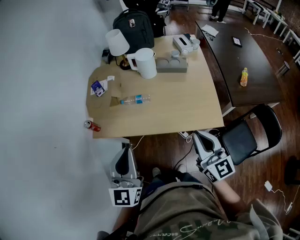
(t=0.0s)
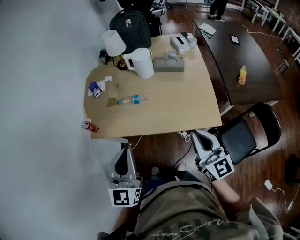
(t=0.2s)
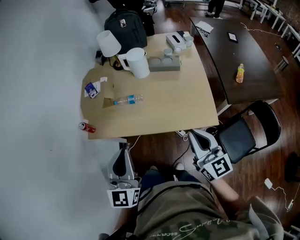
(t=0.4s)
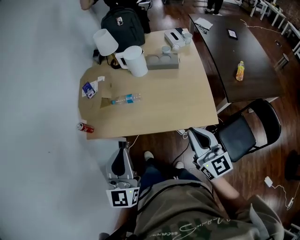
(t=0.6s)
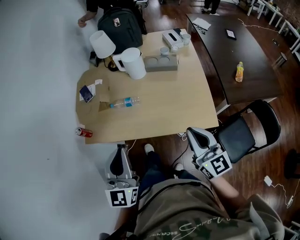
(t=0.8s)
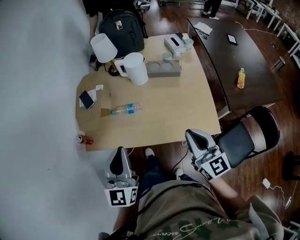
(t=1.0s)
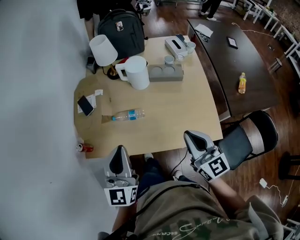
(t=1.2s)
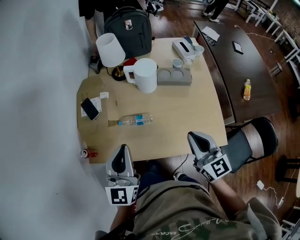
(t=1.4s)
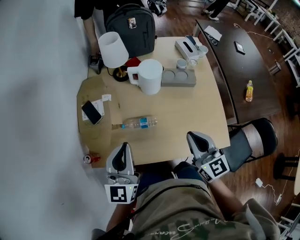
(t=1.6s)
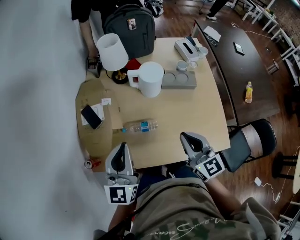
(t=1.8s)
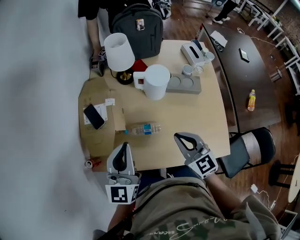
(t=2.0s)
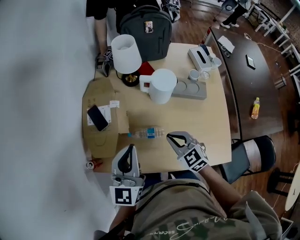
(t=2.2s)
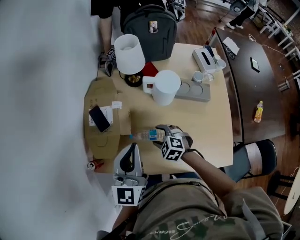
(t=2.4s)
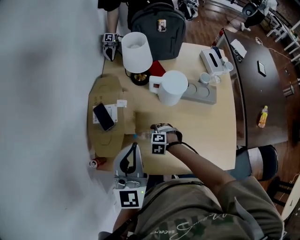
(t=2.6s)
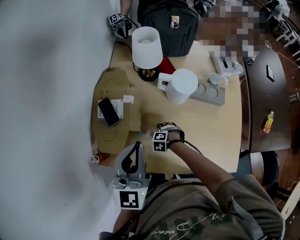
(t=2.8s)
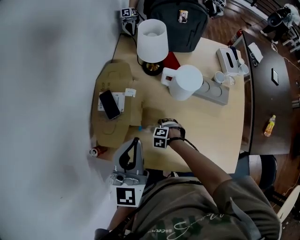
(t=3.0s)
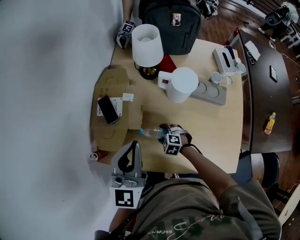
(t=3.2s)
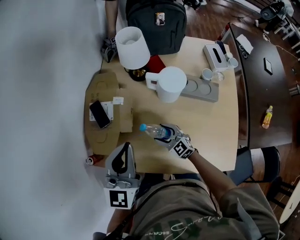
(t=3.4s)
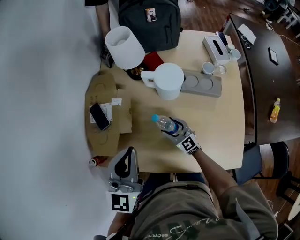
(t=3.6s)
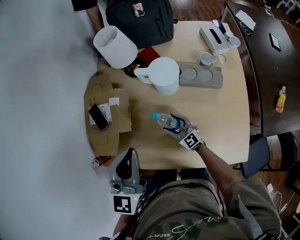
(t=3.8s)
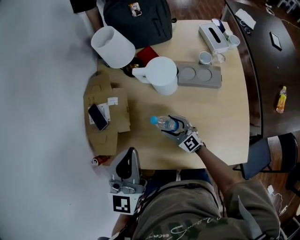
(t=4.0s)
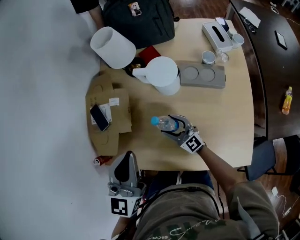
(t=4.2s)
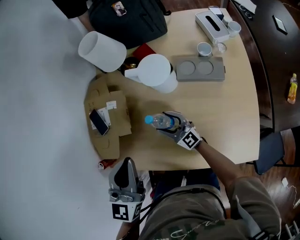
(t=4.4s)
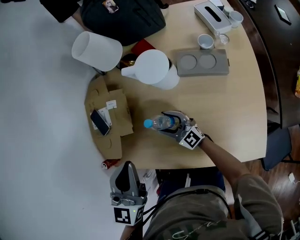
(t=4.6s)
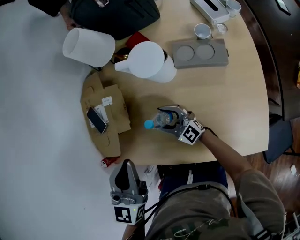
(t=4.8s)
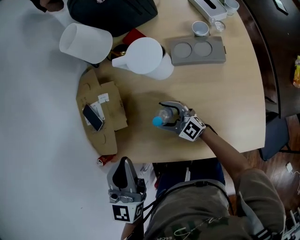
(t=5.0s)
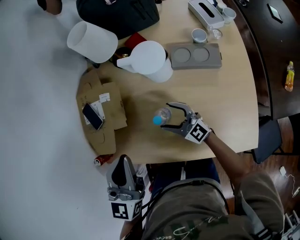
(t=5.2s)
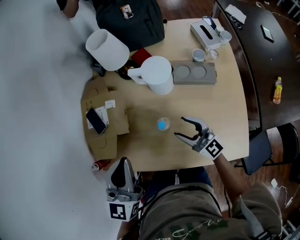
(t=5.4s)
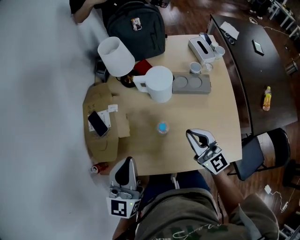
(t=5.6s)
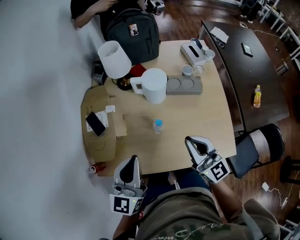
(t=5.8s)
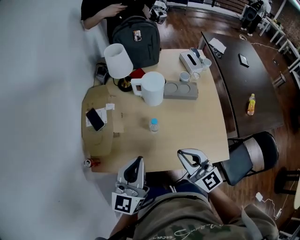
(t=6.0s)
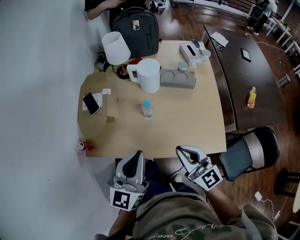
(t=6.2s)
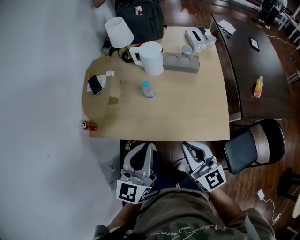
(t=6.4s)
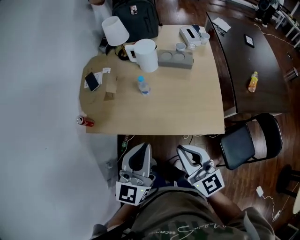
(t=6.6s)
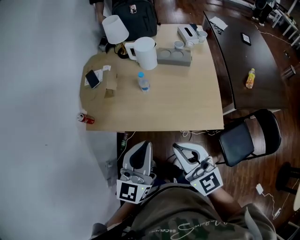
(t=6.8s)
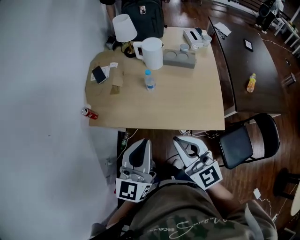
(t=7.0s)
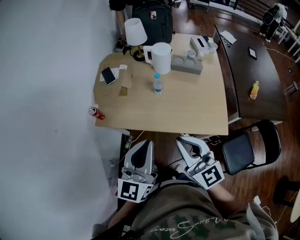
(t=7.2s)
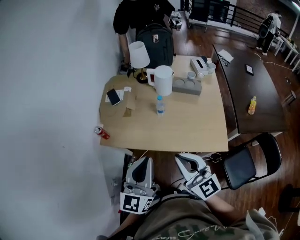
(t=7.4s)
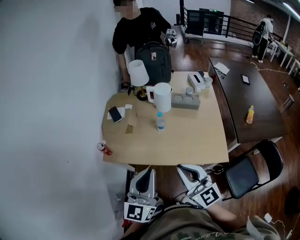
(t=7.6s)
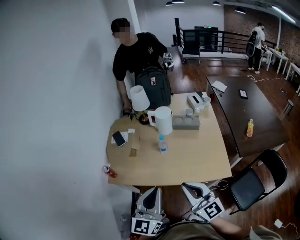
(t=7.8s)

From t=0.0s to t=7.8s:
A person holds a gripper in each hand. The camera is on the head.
From t=0.0s to t=1.6s: The grippers both shift forward by roughly 25 cm.
From t=1.6s to t=3.2s: The right gripper heads downward, covering roughly 35 cm, points its fingers roughly 50 degrees further downward, and opens its fingers, while the left gripper moves some 10 cm.
From t=3.2s to t=4.6s: The right gripper travels upward and to the right by roughly 10 cm, and angles its fingers upward, by approximately 60 degrees. Meanwhile the left gripper travels to the right by approximately 10 cm.
From t=4.6s to t=6.2s: The left gripper shifts some 15 cm backward, and changes its angle by about 20 degrees. Meanwhile the right gripper heads backward and upward, covering roughly 35 cm, and closes its fingers.
From t=6.2s to t=7.8s: The left gripper is displaced backward by about 20 cm. Meanwhile the right gripper is displaced backward and upward by about 20 cm.

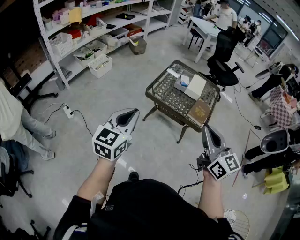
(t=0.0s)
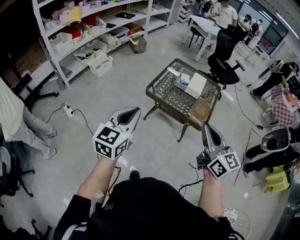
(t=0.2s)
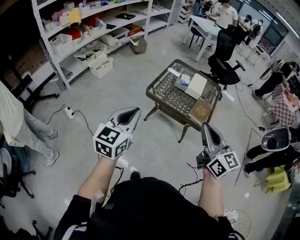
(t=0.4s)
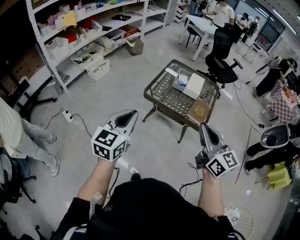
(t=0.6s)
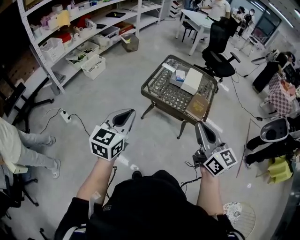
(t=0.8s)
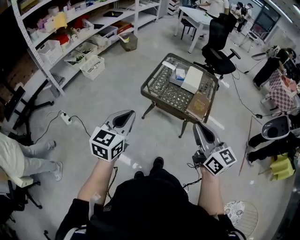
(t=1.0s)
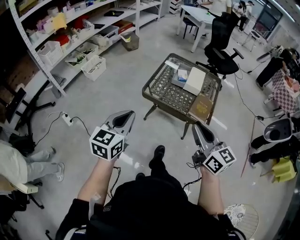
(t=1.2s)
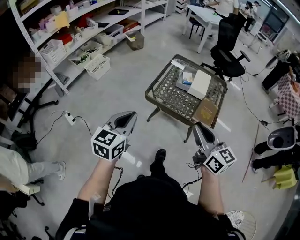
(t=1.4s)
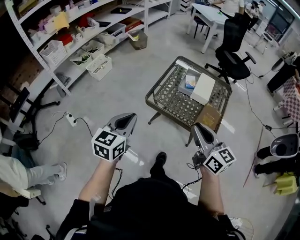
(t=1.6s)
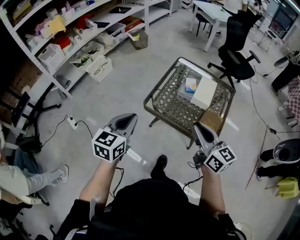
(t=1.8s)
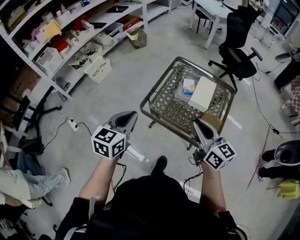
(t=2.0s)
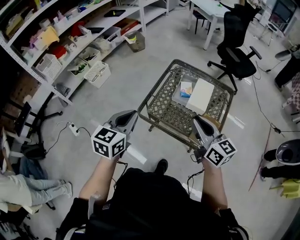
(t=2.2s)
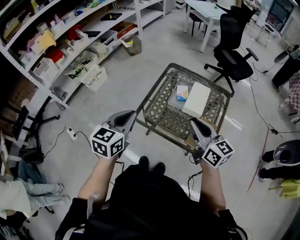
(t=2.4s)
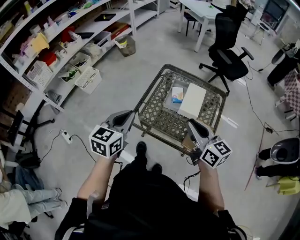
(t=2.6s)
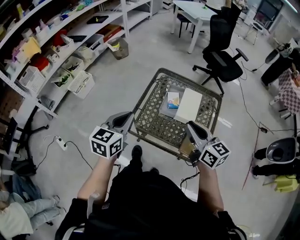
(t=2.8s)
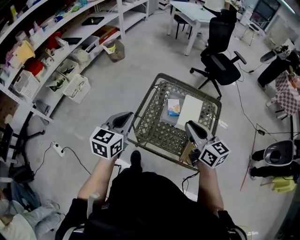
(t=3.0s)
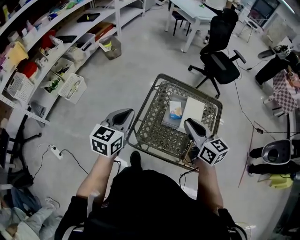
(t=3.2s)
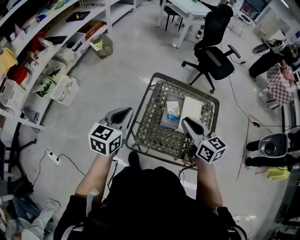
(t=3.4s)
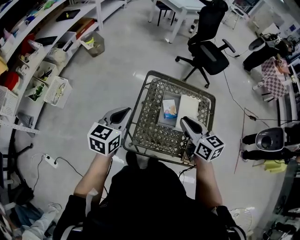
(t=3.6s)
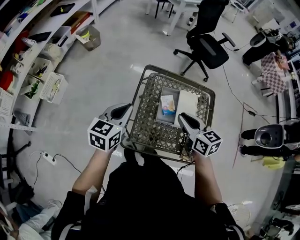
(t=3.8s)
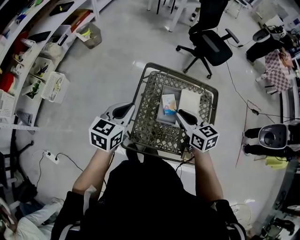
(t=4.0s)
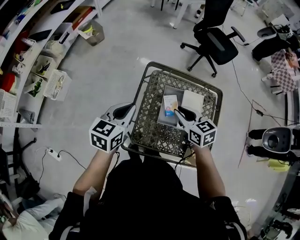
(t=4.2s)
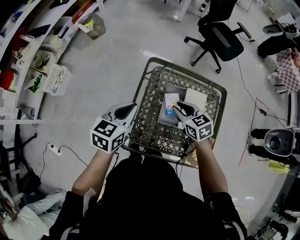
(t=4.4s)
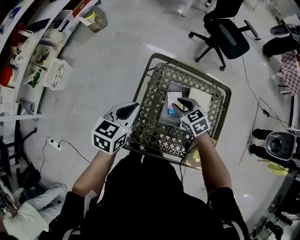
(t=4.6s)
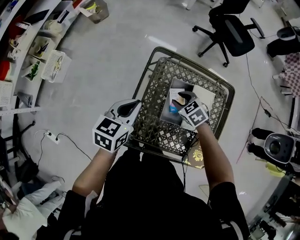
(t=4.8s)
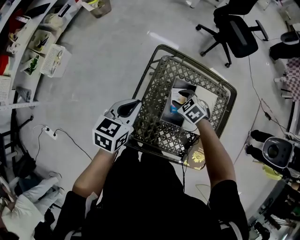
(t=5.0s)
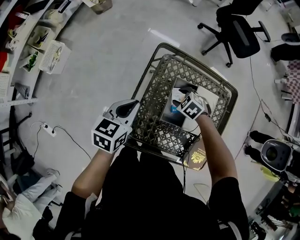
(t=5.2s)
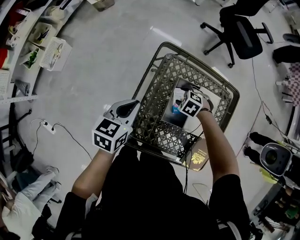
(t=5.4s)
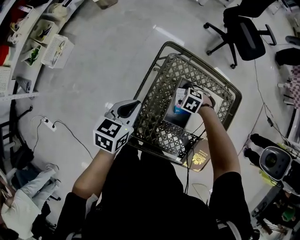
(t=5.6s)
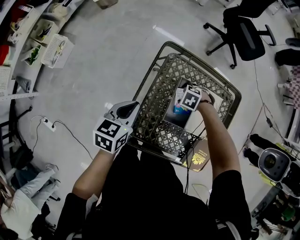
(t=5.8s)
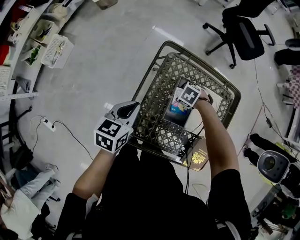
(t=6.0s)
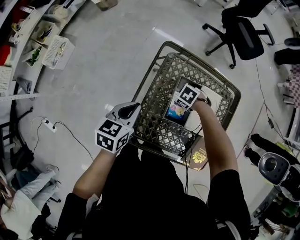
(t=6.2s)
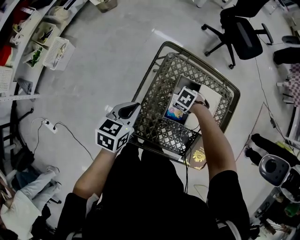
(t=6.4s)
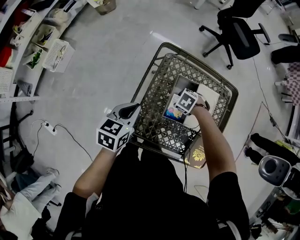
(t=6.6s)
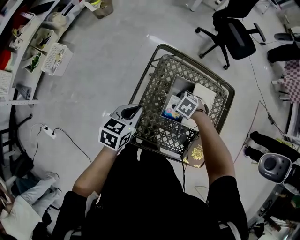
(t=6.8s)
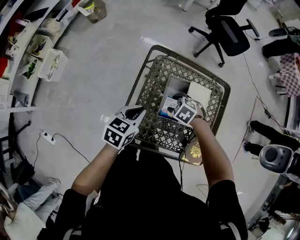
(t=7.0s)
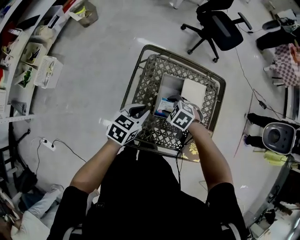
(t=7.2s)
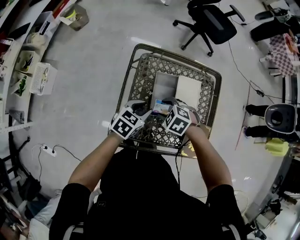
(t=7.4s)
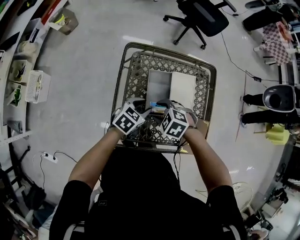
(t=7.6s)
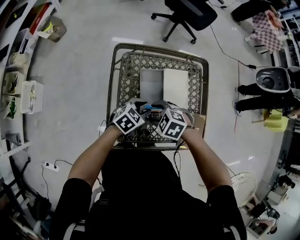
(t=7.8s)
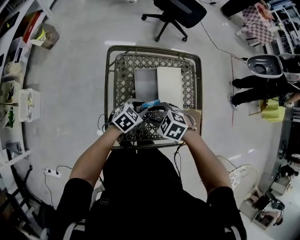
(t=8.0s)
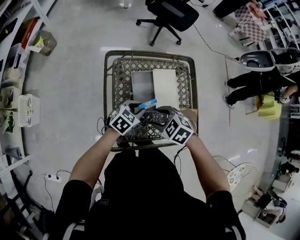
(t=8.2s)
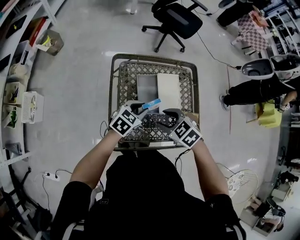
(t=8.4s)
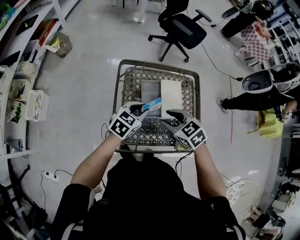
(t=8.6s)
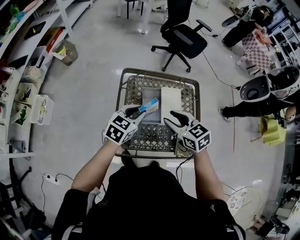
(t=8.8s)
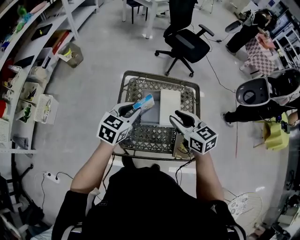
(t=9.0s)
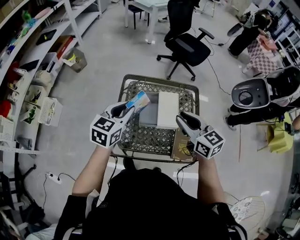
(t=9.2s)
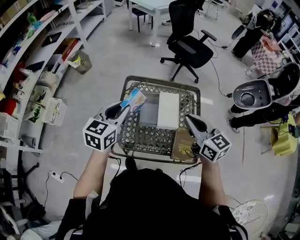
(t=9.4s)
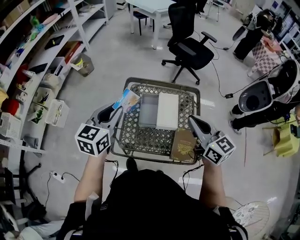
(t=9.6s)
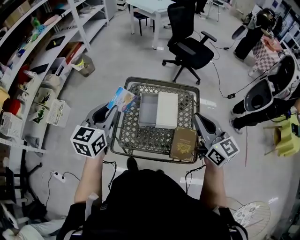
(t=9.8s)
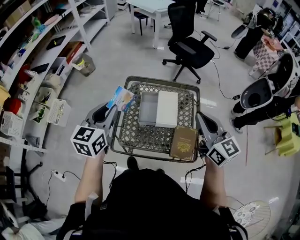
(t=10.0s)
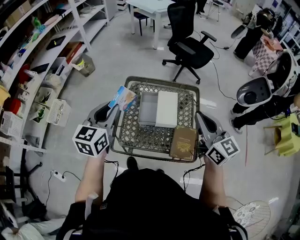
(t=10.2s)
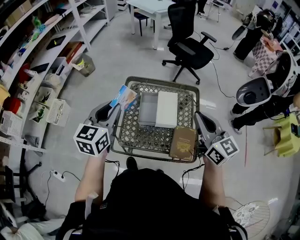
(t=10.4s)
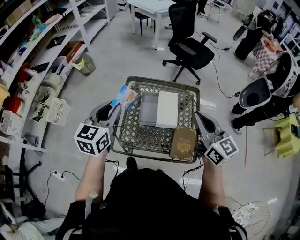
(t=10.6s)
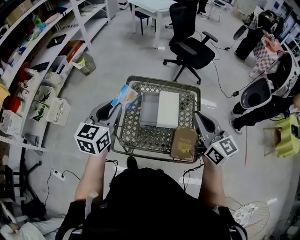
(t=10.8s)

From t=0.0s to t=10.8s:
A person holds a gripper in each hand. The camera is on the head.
From t=0.0s to t=1.6s: The grippers both shift forward and downward by approximately 20 cm.
From t=1.6s to t=3.0s: Both grippers travel together forward, roughly 25 cm.
From t=3.0s to t=4.6s: The right gripper heads downward and forward, covering approximately 30 cm, and angles its fingers downward, by approximately 40 degrees. Meanwhile the left gripper is displaced forward and downward by about 20 cm.
From t=4.6s to t=6.2s: The left gripper heads downward, covering some 10 cm. Meanwhile the right gripper shifts about 15 cm downward, tips its fingers downward by some 30 degrees, and opens.
From t=6.2s to t=7.8s: The left gripper ends up about 20 cm from where it was, changes its angle by some 50 degrees, and opens its fingers. Meanwhile the right gripper is displaced upward by some 15 cm, and rotates about 20 degrees.
From t=7.8s to t=9.2s: The two grippers go some 25 cm upward. The left gripper turns by approximately 40 degrees; the right gripper angles its fingers upward, by roughly 50 degrees, and closes up.
From t=9.2s to t=10.8s: The left gripper shifts approximately 10 cm upward; the right gripper travels upward and to the right by some 10 cm.

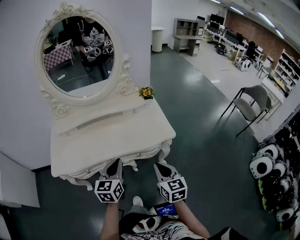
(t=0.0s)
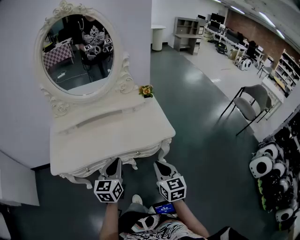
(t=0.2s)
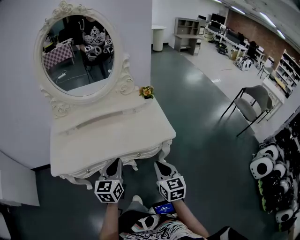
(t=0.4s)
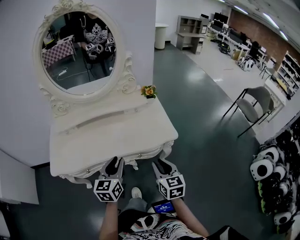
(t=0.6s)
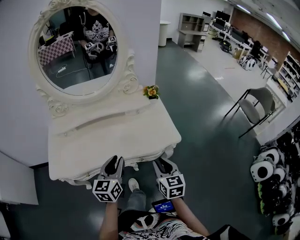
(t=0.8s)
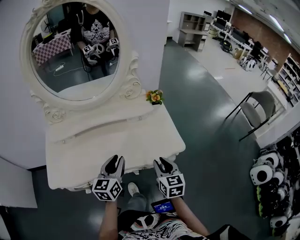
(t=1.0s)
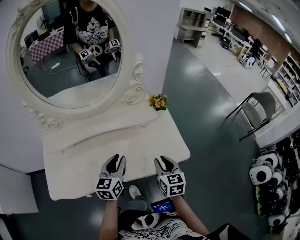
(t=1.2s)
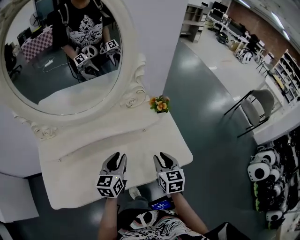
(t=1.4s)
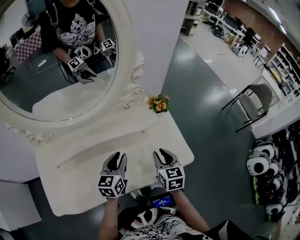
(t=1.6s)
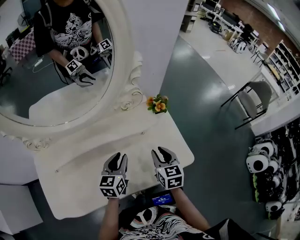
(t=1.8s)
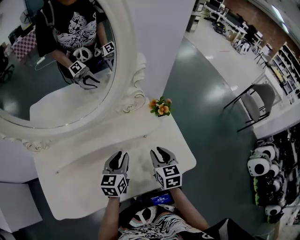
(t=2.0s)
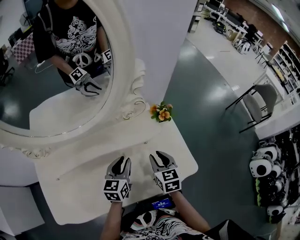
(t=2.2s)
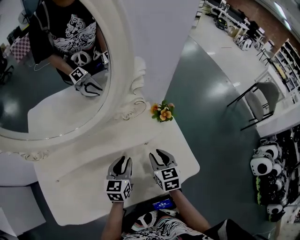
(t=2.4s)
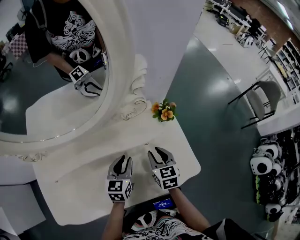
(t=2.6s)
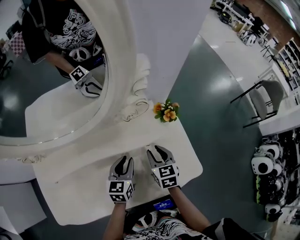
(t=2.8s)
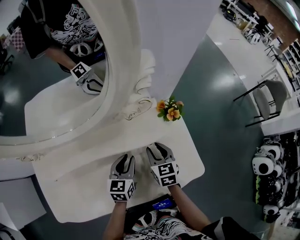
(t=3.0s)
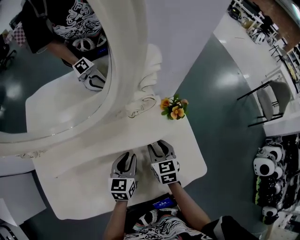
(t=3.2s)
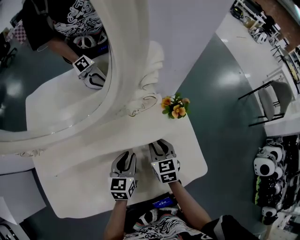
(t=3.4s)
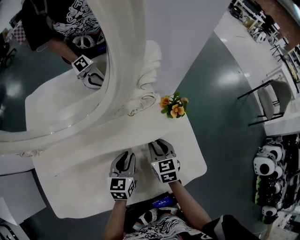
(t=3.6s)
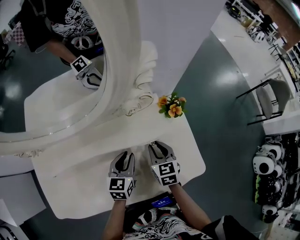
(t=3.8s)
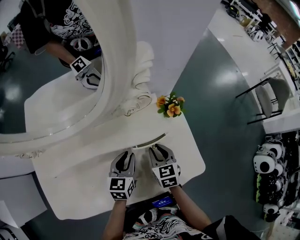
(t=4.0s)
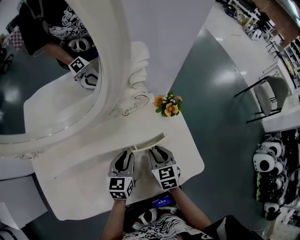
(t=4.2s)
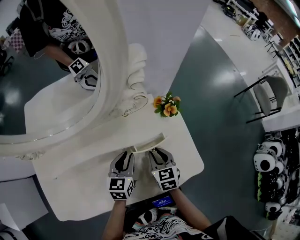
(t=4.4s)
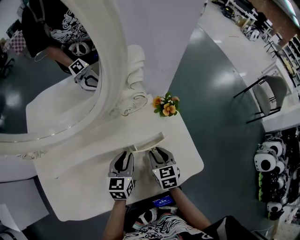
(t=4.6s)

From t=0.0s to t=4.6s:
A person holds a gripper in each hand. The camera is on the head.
From t=0.0s to t=1.6s: The two grippers go approximately 30 cm forward. The right gripper opens its fingers, while the left gripper opens.
From t=1.6s to t=3.0s: The left gripper shifts about 10 cm downward and forward; the right gripper heads forward and downward, covering approximately 15 cm.
From t=3.0s to t=4.6s: There are only small adjustments of the grippers.
